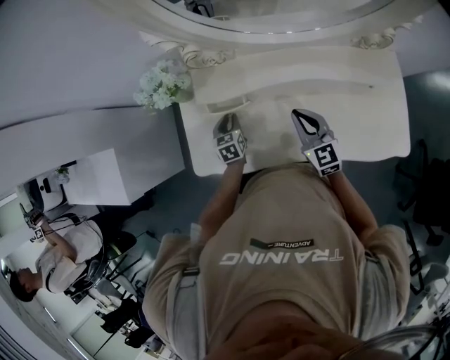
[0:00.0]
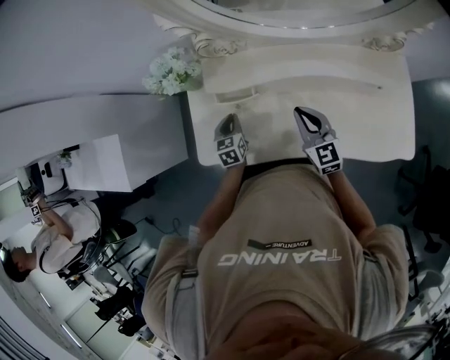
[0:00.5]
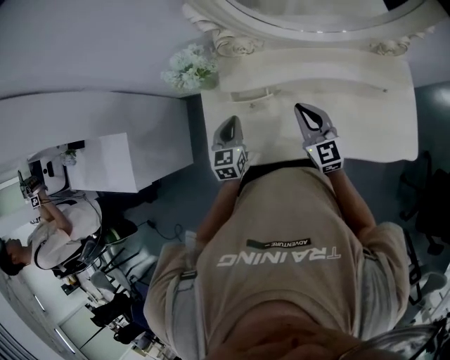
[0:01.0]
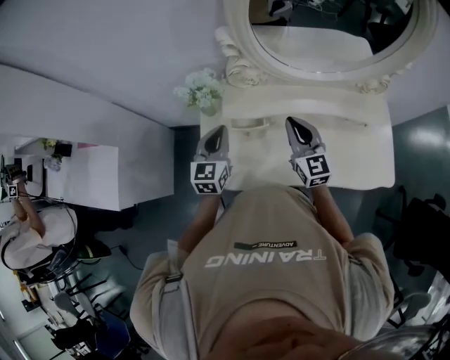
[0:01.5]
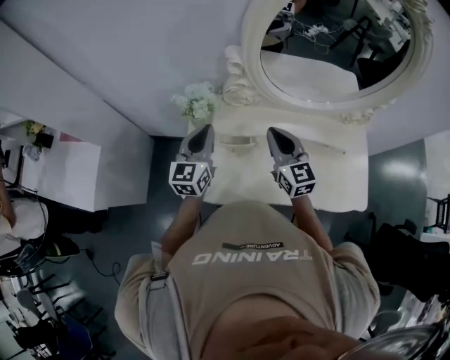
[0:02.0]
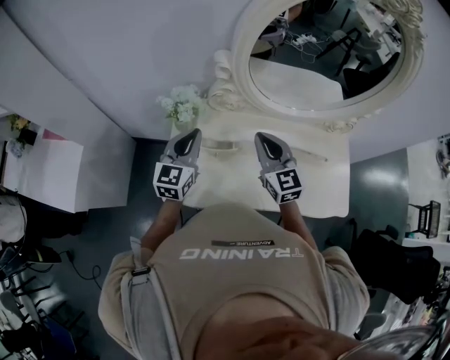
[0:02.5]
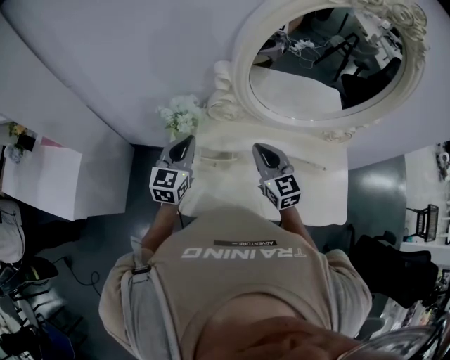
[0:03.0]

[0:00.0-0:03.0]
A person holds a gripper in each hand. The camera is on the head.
0:00.0 to 0:01.5: The right gripper goes approximately 15 cm upward and to the left; the left gripper is displaced upward by approximately 25 cm, turns by approximately 30 degrees, and closes.
0:01.5 to 0:03.0: The right gripper ends up approximately 5 cm from where it was. The left gripper shifts roughly 5 cm upward.

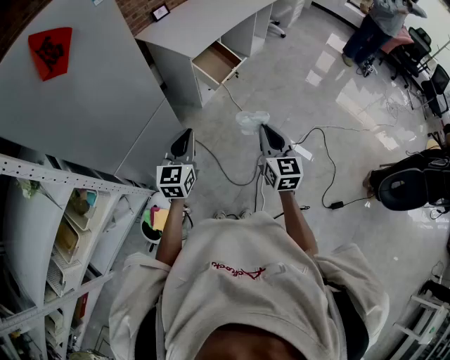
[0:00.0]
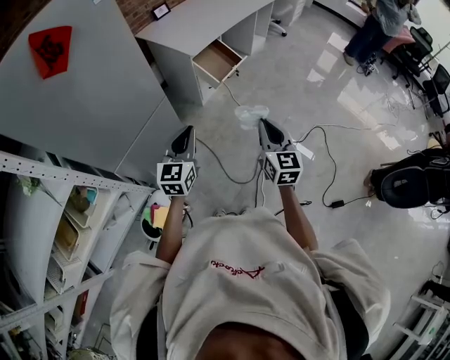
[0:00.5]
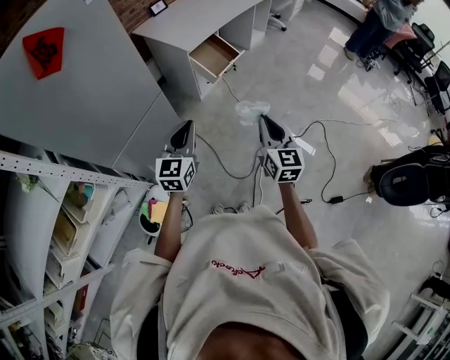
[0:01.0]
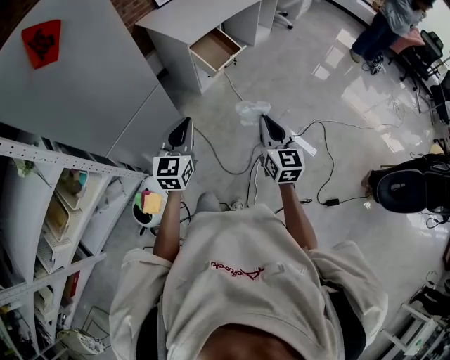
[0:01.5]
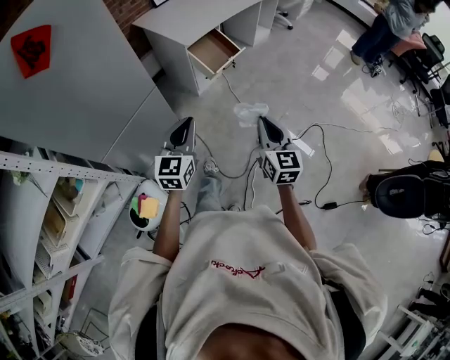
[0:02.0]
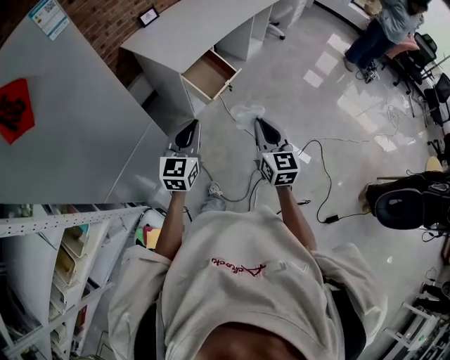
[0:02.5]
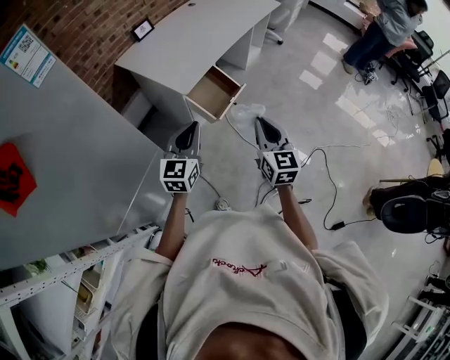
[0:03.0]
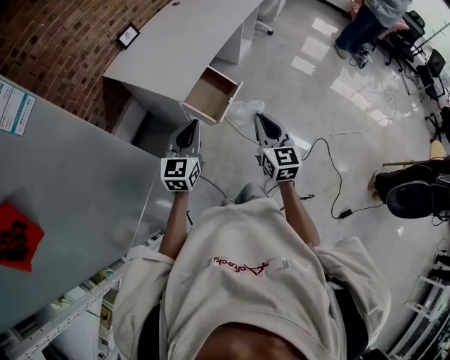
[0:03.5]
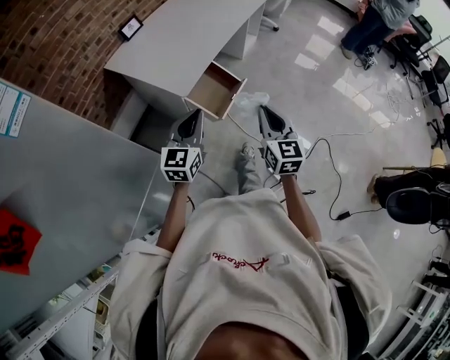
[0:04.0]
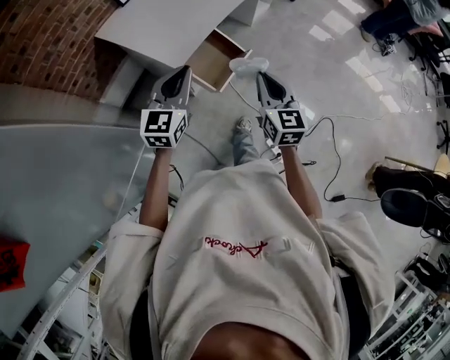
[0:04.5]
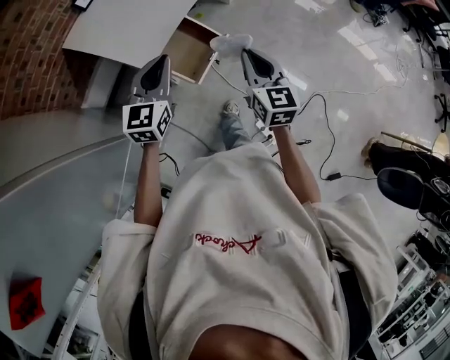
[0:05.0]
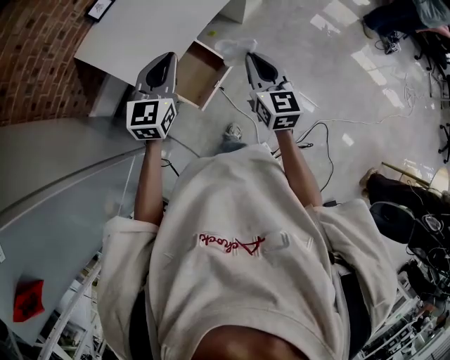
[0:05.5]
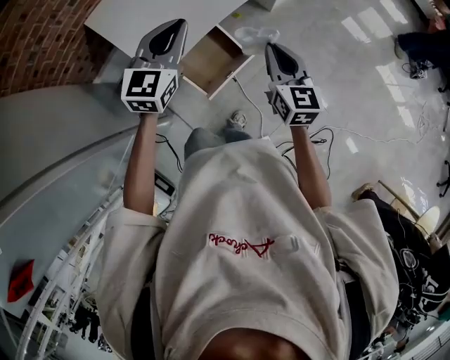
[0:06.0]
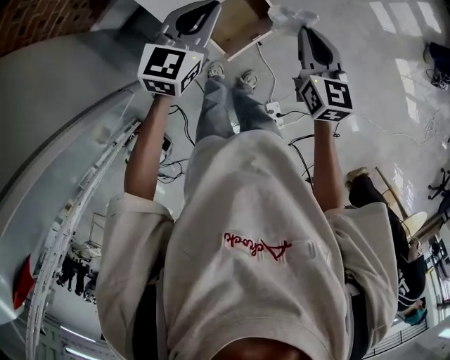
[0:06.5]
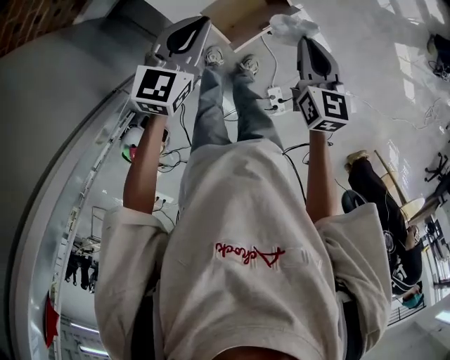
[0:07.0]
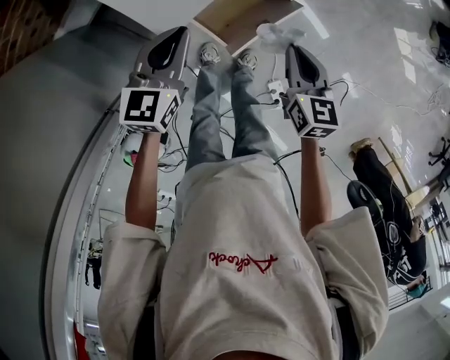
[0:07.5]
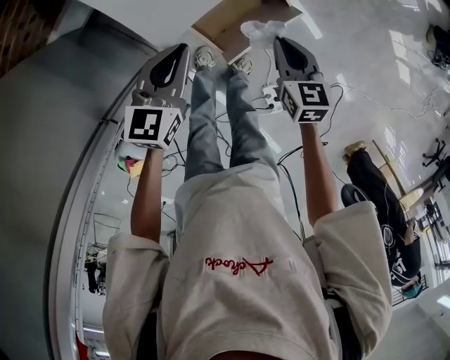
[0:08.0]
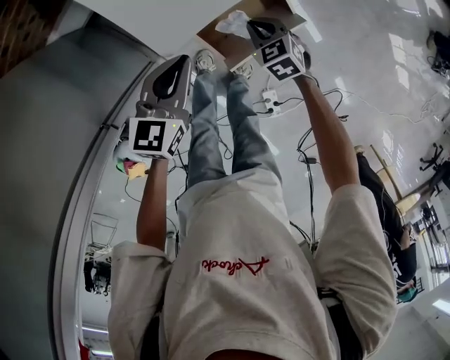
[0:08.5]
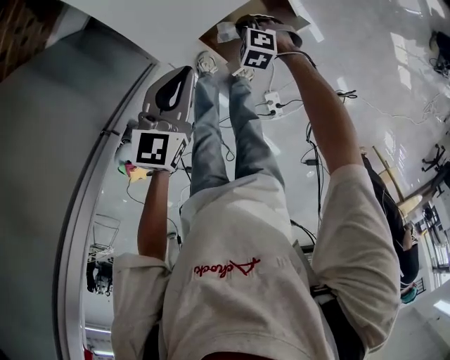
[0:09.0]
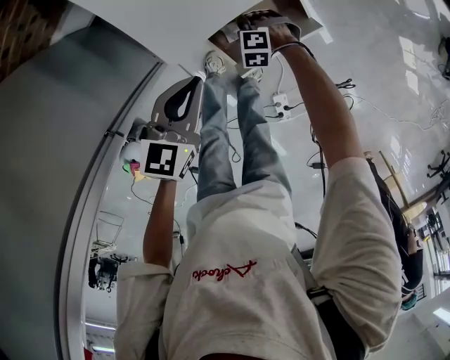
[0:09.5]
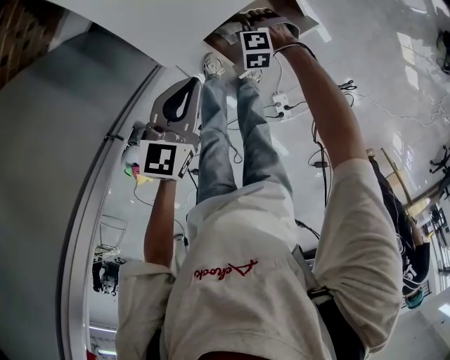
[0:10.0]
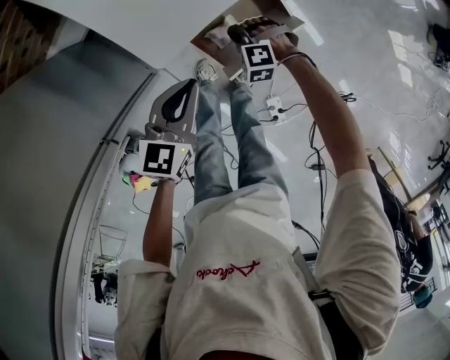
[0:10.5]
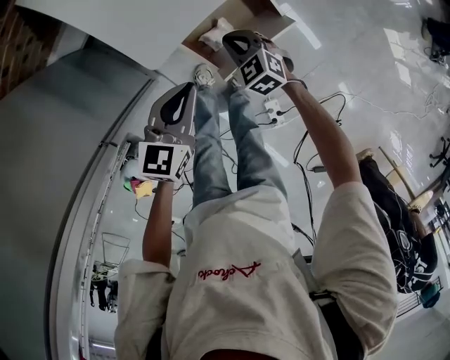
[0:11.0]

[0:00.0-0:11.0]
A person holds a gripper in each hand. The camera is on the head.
0:00.0 to 0:02.0: The two grippers go some 5 cm to the right.
0:02.0 to 0:03.5: The grippers both shift forward by about 35 cm.
0:03.5 to 0:05.5: The two grippers go some 25 cm forward.
0:05.5 to 0:07.5: The left gripper travels downward and to the left by some 30 cm, and swivels about 20 degrees; the right gripper heads downward, covering about 25 cm, and rotates roughly 30 degrees.
0:07.5 to 0:09.0: The right gripper goes approximately 25 cm downward, and twists some 70 degrees counterclockwise, seen from behind.
0:09.0 to 0:11.0: The right gripper travels upward by approximately 10 cm, rotates roughly 30 degrees, and opens, then closes once more.

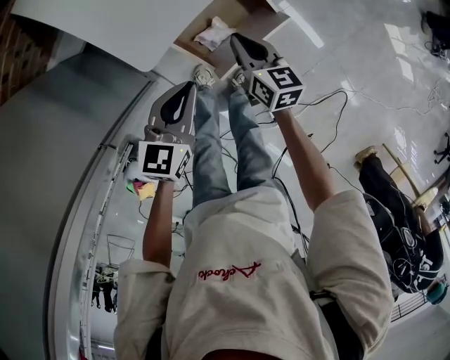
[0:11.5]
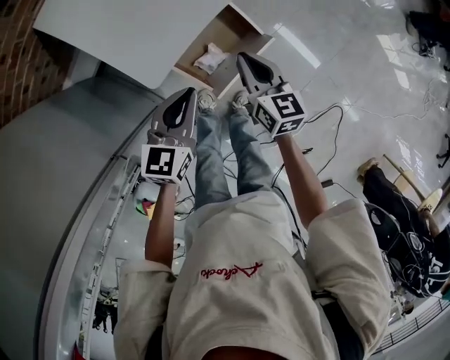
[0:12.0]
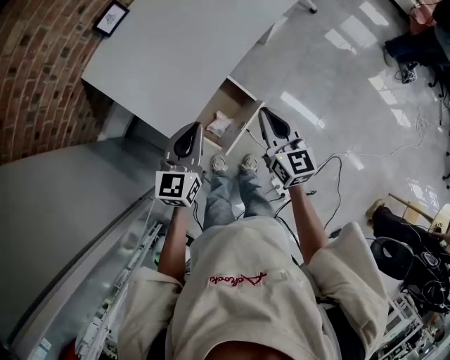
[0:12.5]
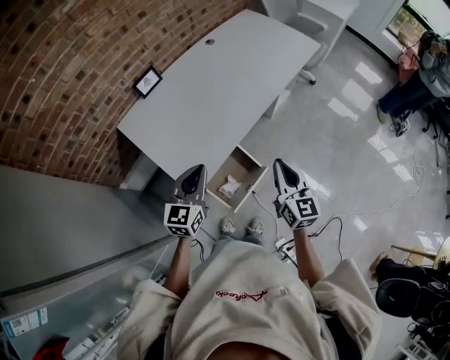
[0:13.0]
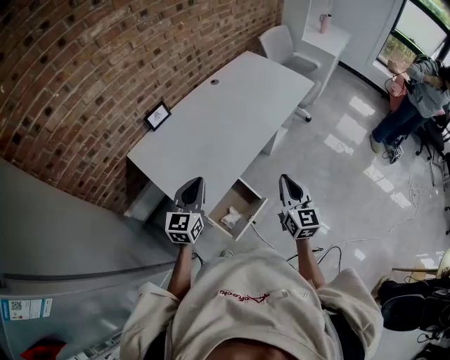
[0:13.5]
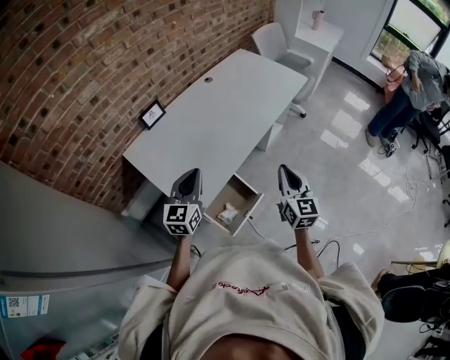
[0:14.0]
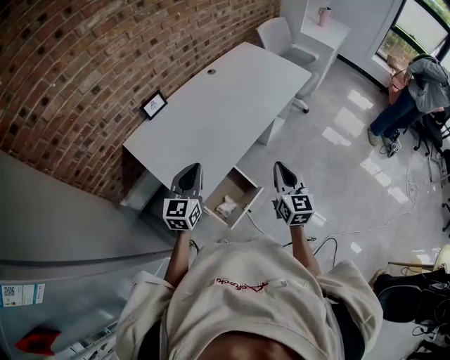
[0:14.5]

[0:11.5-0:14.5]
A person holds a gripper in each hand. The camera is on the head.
0:11.5 to 0:13.0: The left gripper moves upward, some 25 cm, and rotates roughly 20 degrees, while the right gripper moves upward and to the right, roughly 40 cm, and swivels some 30 degrees.
0:13.0 to 0:14.5: The left gripper moves approximately 5 cm.

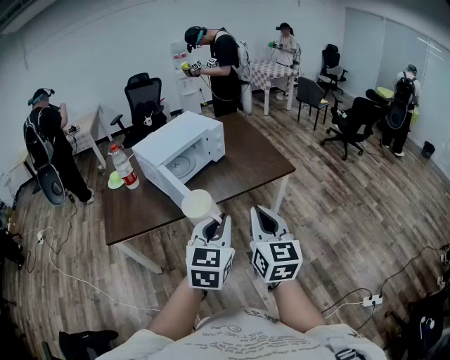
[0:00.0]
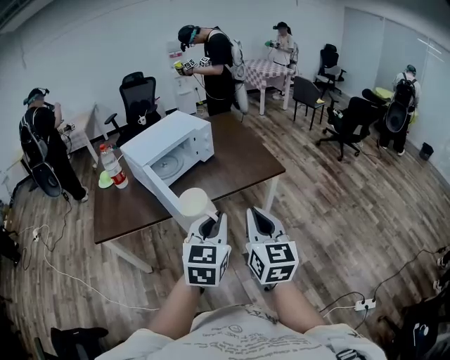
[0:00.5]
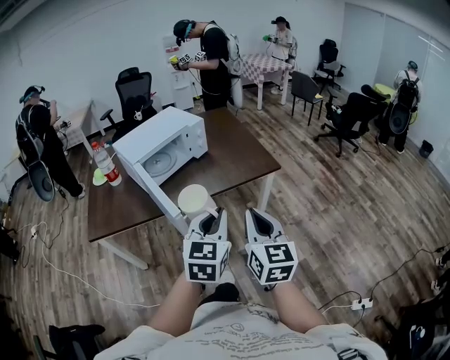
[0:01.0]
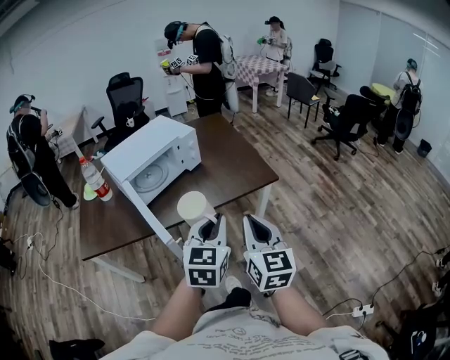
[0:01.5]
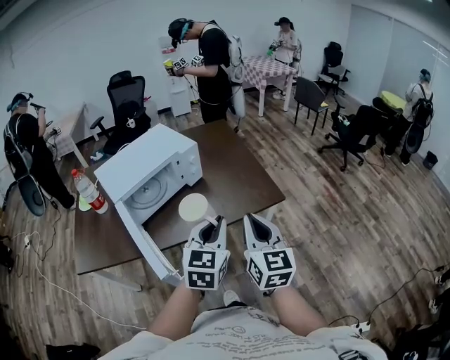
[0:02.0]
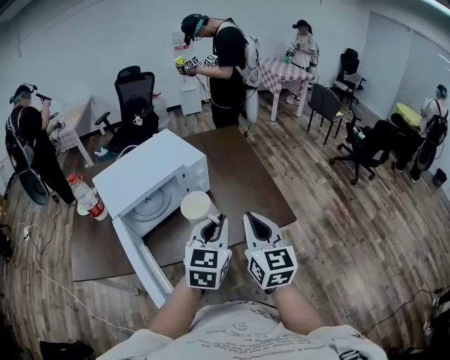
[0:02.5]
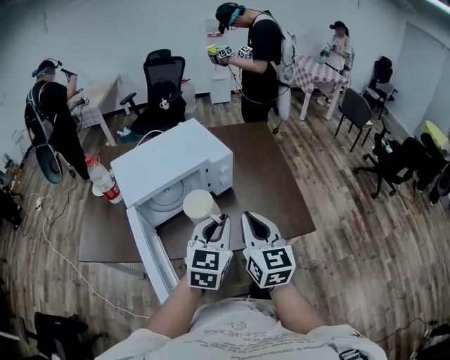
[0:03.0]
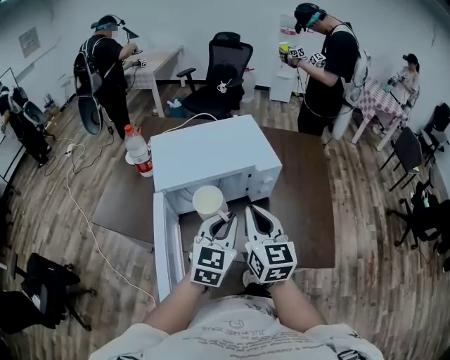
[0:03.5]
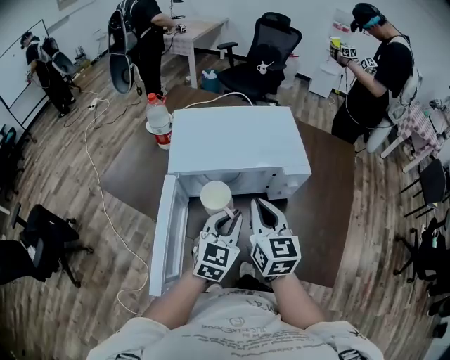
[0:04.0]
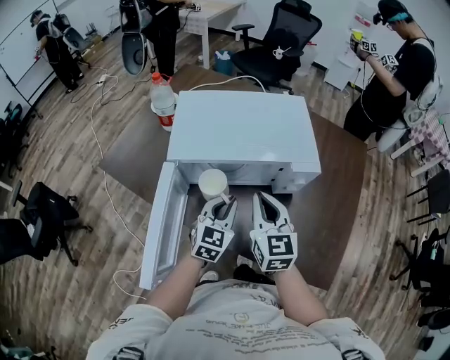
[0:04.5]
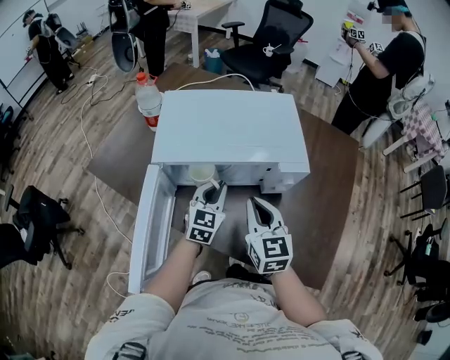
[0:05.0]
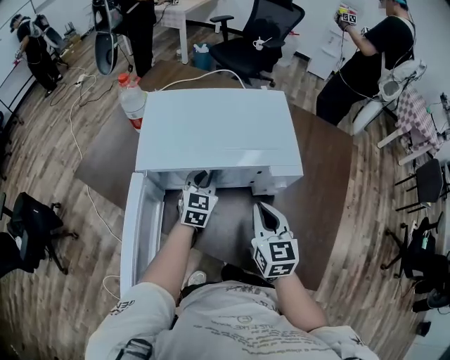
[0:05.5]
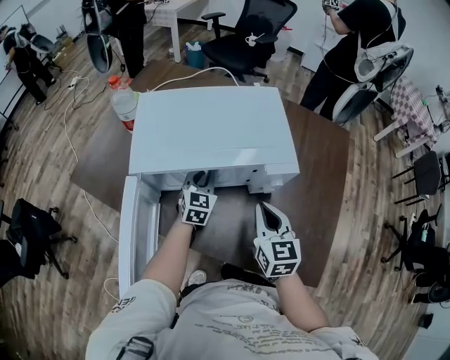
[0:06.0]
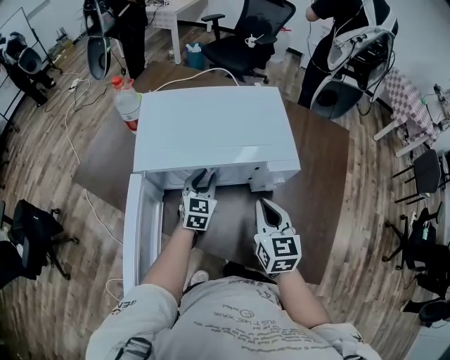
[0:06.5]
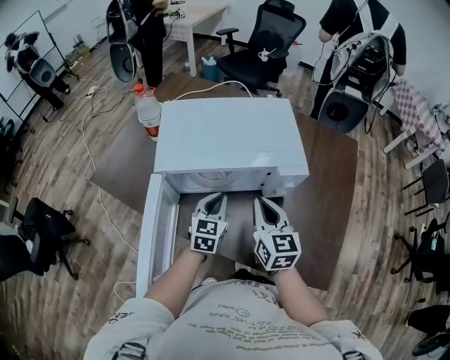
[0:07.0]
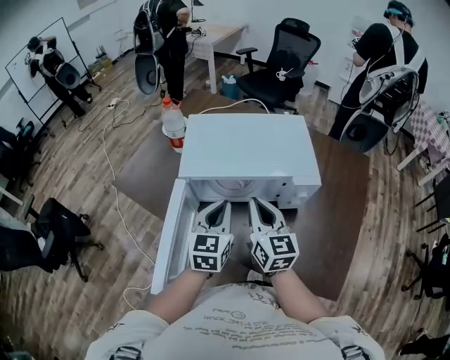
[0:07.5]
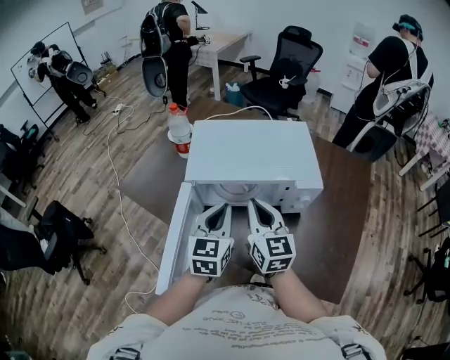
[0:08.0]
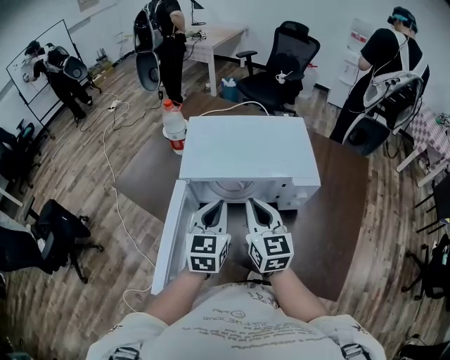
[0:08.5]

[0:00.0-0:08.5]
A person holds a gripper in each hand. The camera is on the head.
0:00.0 to 0:02.0: The left gripper goes approximately 25 cm forward and to the right. The right gripper goes some 25 cm forward.
0:02.0 to 0:04.0: The right gripper moves some 35 cm, and swivels about 40 degrees, while the left gripper moves roughly 30 cm, and turns by about 30 degrees.
0:04.0 to 0:06.5: The left gripper shifts roughly 20 cm forward and downward. Meanwhile the right gripper is displaced downward and to the right by about 10 cm.
0:06.5 to 0:08.5: The right gripper moves to the left and upward, approximately 15 cm. The left gripper is displaced upward, backward and to the left by about 20 cm.
